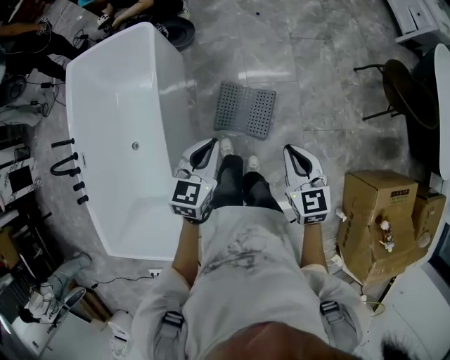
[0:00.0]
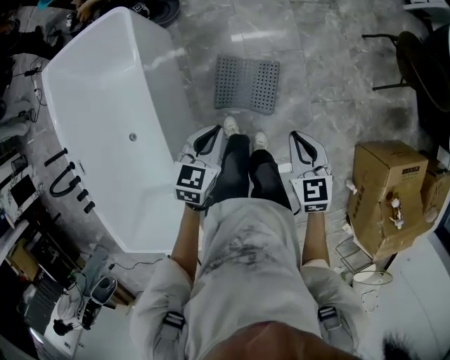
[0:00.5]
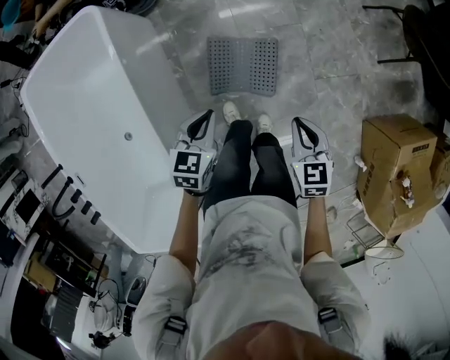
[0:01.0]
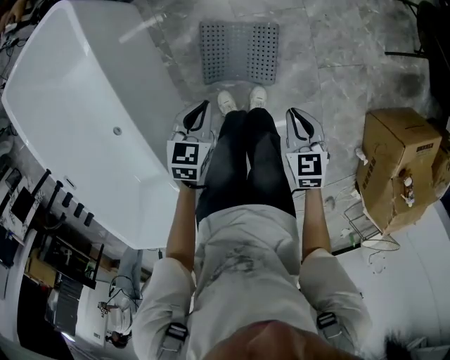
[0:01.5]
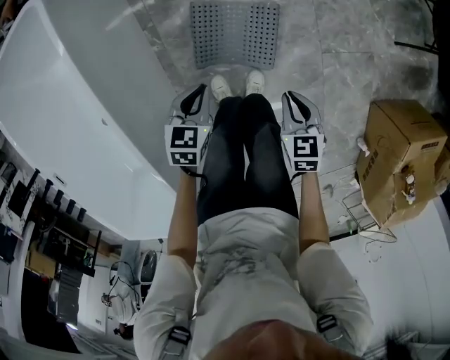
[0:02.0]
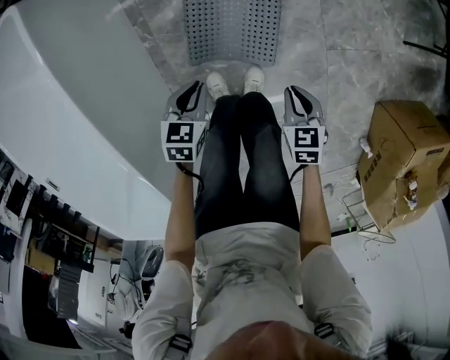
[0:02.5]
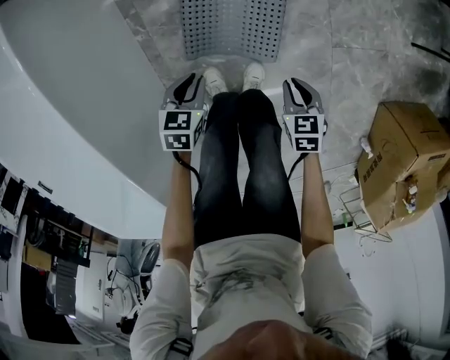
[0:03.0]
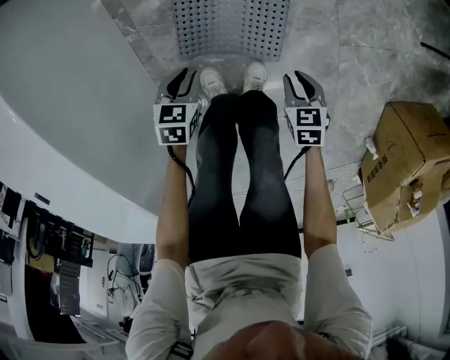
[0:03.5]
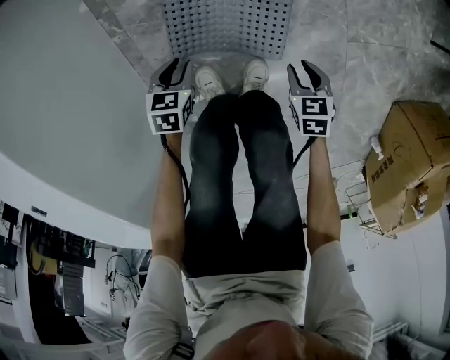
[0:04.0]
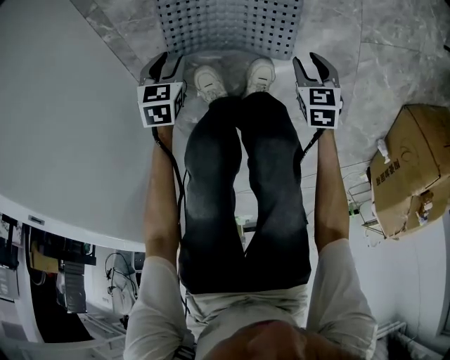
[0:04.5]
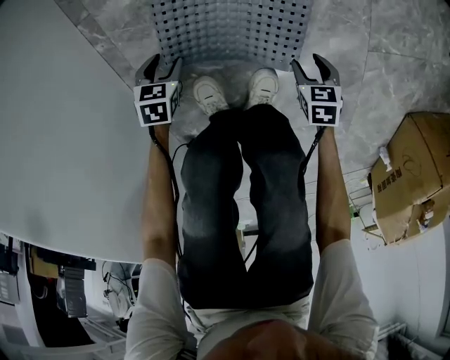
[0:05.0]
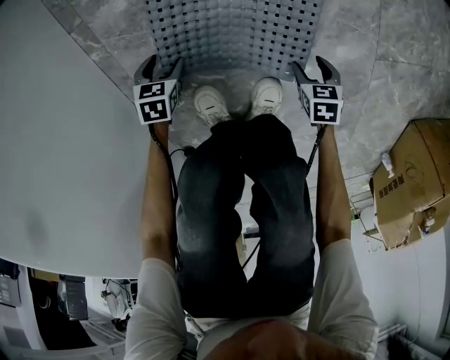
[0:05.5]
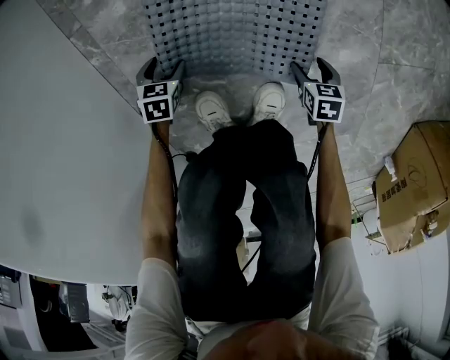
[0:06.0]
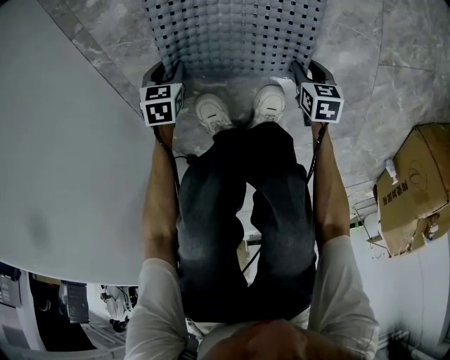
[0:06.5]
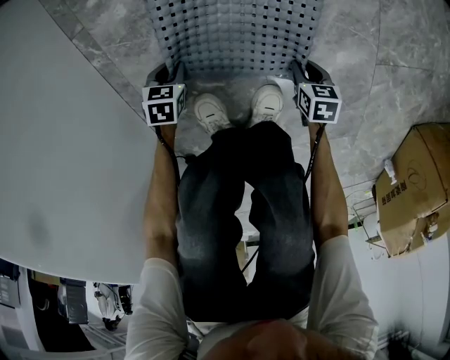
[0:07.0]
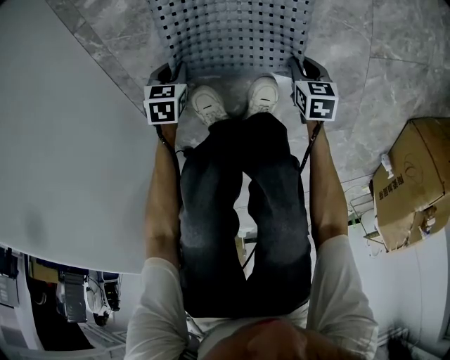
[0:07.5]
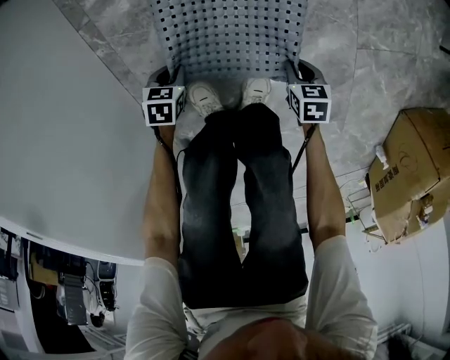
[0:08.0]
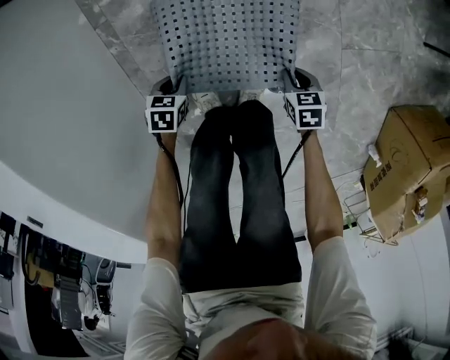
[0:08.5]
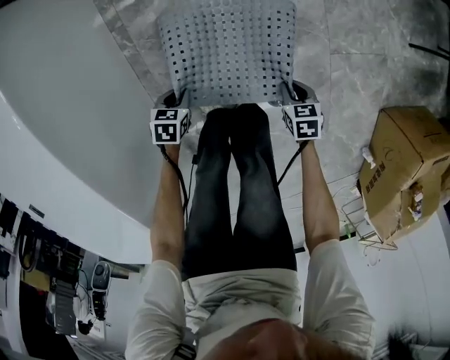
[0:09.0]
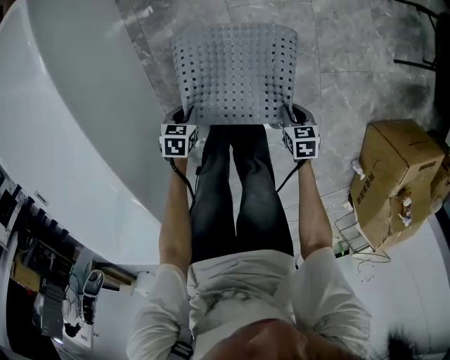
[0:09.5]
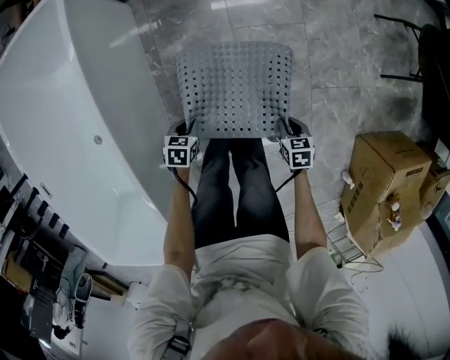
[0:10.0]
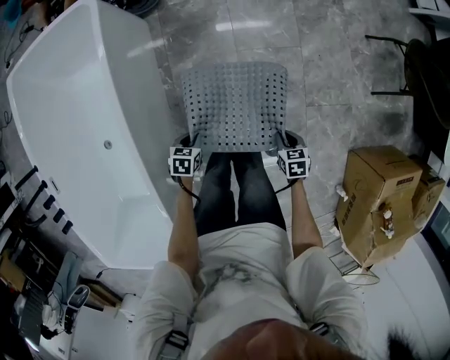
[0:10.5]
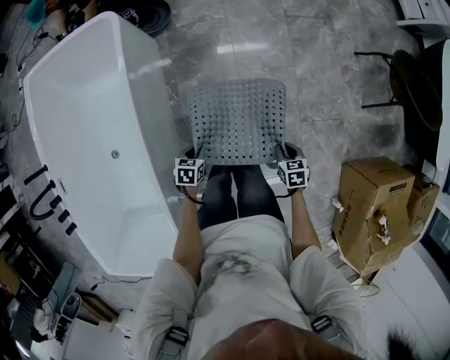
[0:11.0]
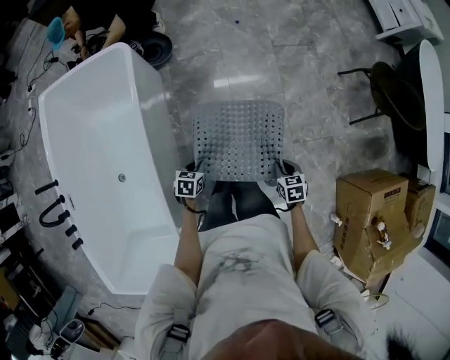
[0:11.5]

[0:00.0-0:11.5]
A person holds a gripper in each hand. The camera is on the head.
0:00.0 to 0:02.0: Both grippers travel together downward, roughly 40 cm. The left gripper changes its angle by roughly 30 degrees; the right gripper rotates some 30 degrees.
0:02.0 to 0:04.0: Both grippers move downward, roughly 35 cm.
0:04.0 to 0:06.0: The grippers both shift downward by roughly 25 cm. The right gripper opens up; the left gripper opens up.
0:06.0 to 0:07.5: The left gripper ends up approximately 5 cm from where it was, and closes its fingers. Meanwhile the right gripper closes up.
0:07.5 to 0:09.5: Both grippers move upward, roughly 30 cm.
0:09.5 to 0:11.5: Both grippers move upward, some 30 cm.

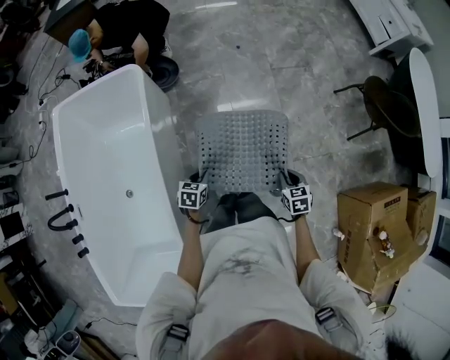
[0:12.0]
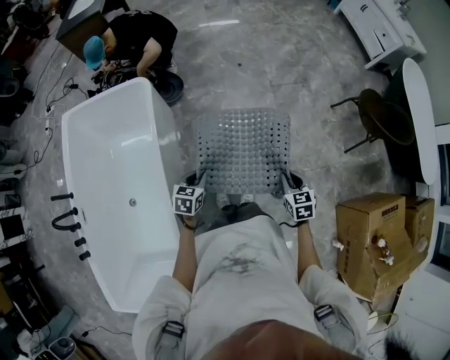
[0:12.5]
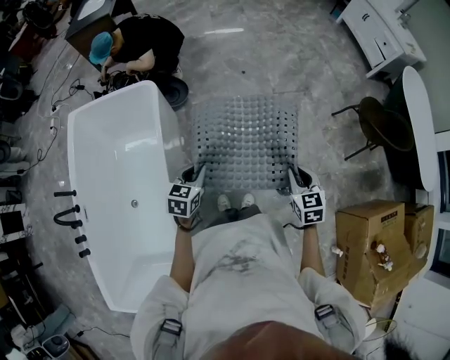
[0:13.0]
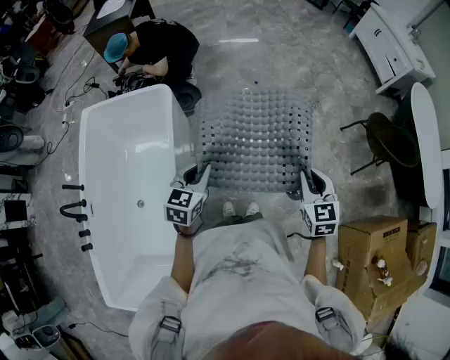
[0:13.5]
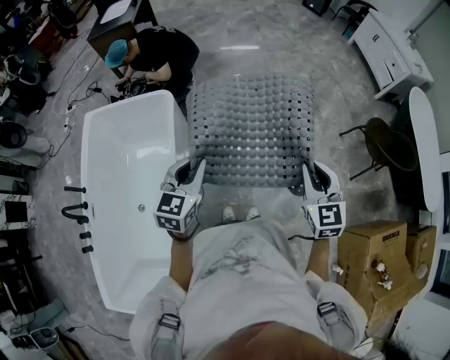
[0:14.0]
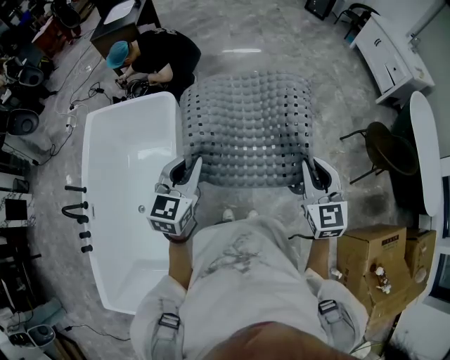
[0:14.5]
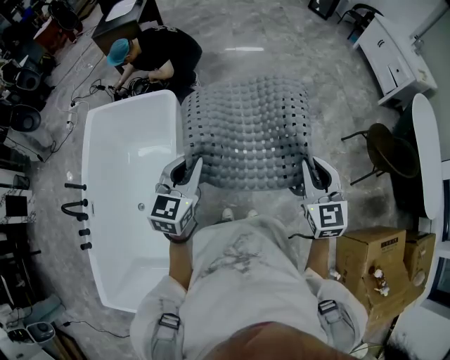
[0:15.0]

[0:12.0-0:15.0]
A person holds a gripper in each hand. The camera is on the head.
0:12.0 to 0:13.5: The grippers both shift upward by approximately 30 cm. The left gripper changes its angle by some 30 degrees. The right gripper changes its angle by approximately 30 degrees.
0:13.5 to 0:15.0: The grippers both shift upward by some 10 cm.

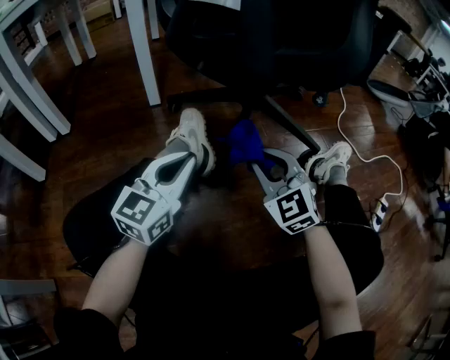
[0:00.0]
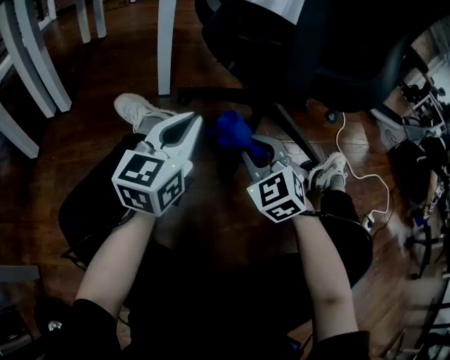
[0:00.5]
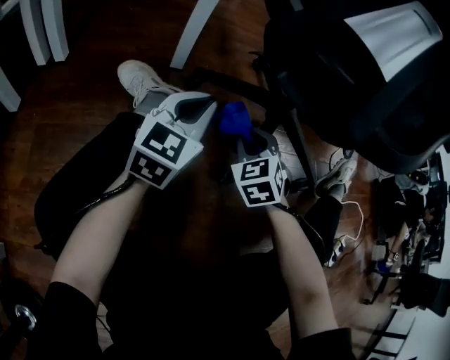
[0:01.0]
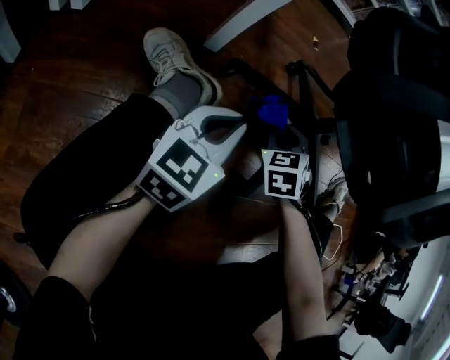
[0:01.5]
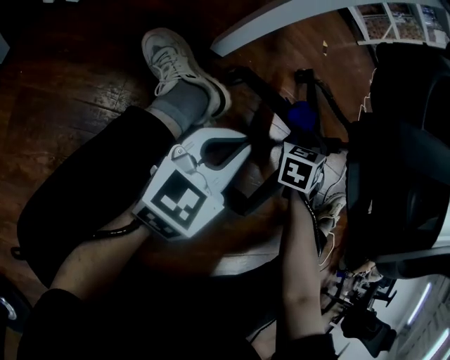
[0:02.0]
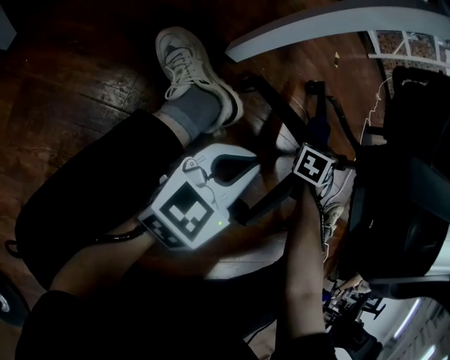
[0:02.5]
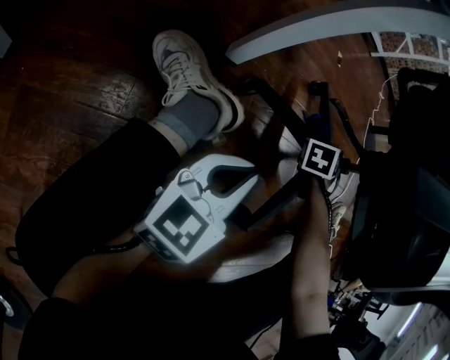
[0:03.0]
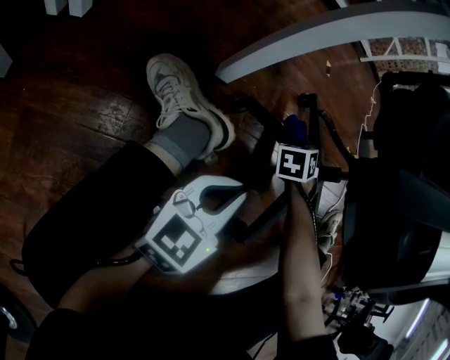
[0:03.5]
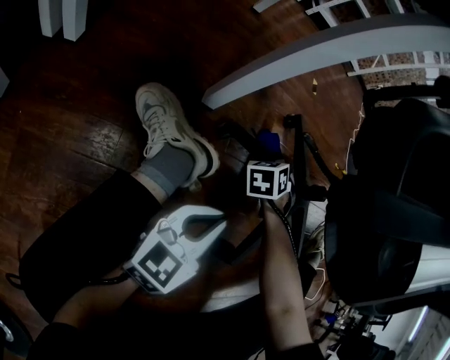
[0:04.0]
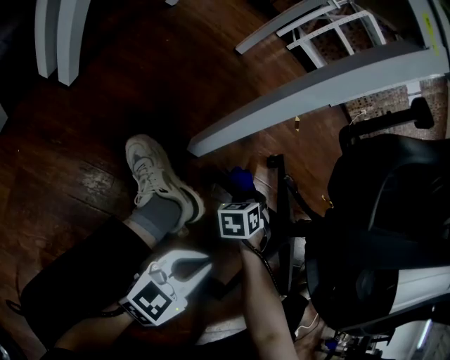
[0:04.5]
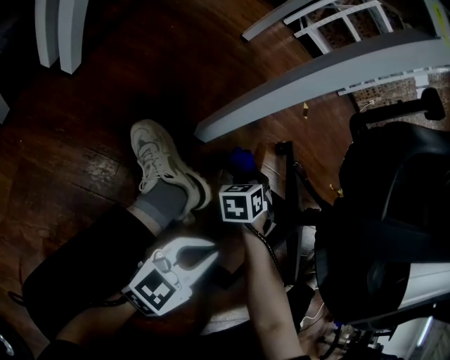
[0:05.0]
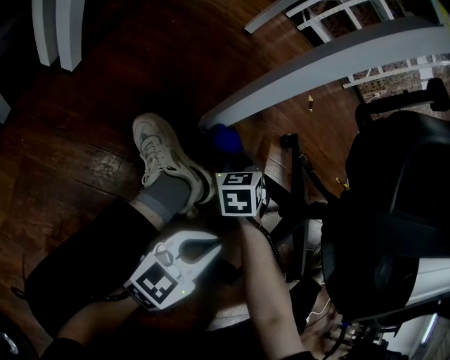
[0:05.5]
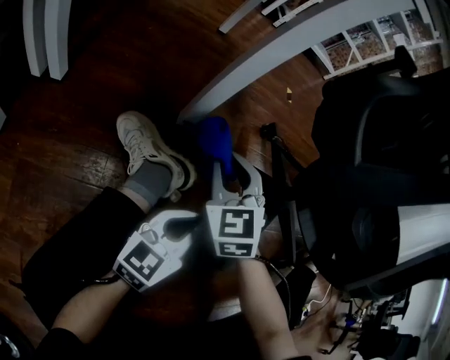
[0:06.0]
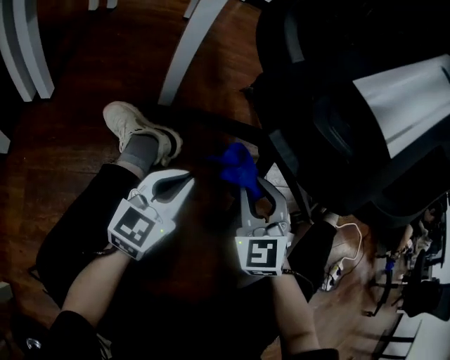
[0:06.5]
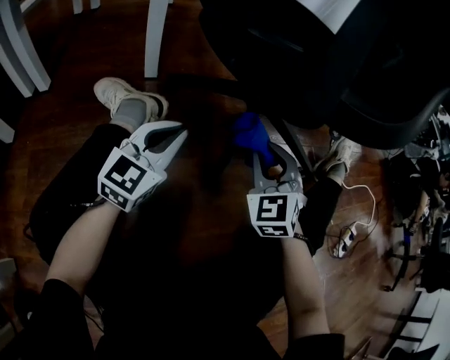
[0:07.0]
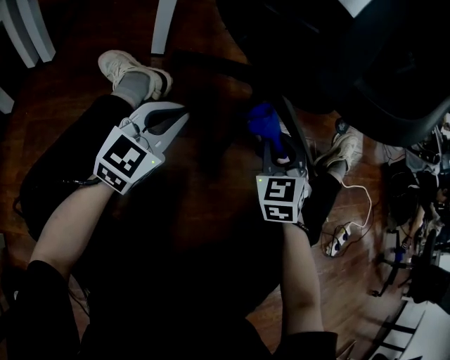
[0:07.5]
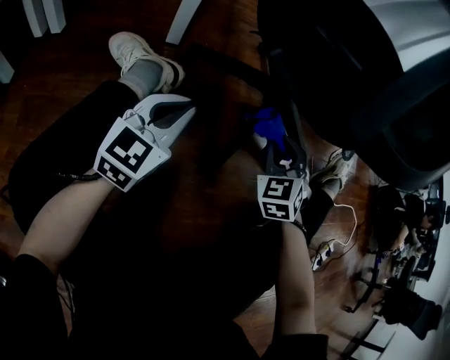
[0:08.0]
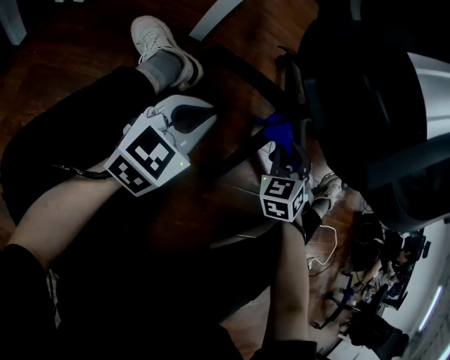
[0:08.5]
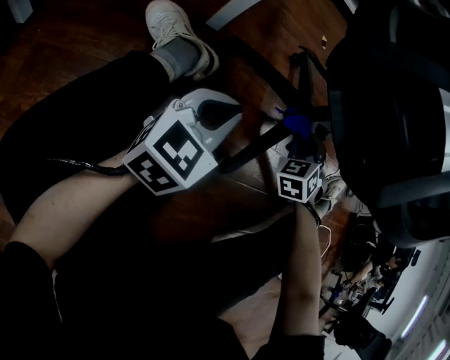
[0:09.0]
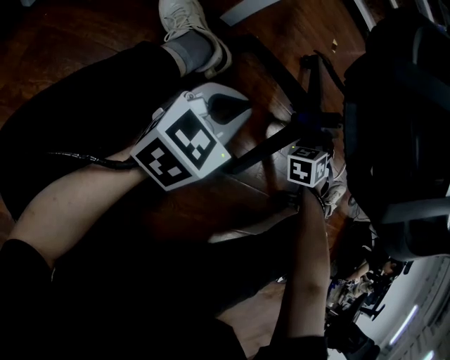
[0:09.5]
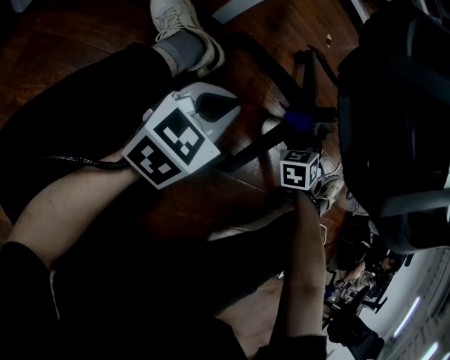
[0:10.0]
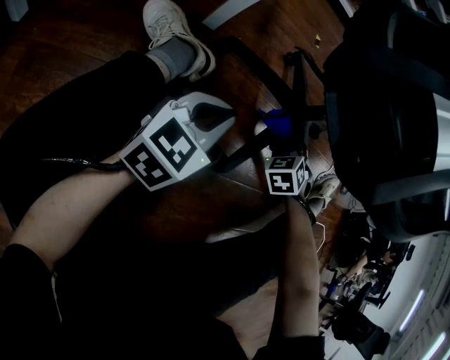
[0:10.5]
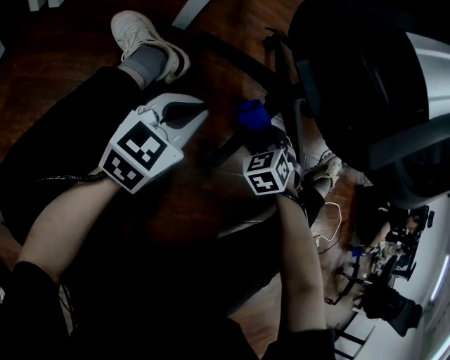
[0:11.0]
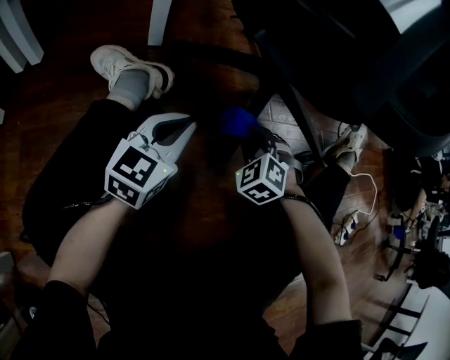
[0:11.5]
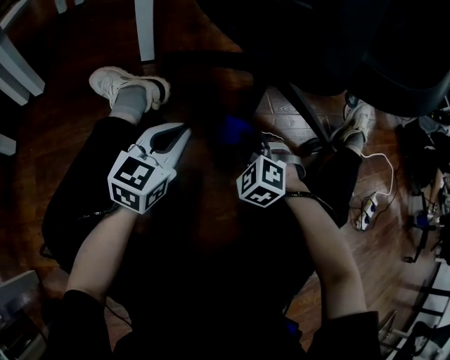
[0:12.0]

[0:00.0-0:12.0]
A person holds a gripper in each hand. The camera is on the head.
0:00.0 to 0:02.0: The right gripper heads forward and to the left, covering about 30 cm, and changes its angle by some 40 degrees. The left gripper shifts approximately 20 cm to the left, forward and downward.
0:02.0 to 0:04.0: The right gripper shifts about 10 cm to the left.
0:04.0 to 0:06.0: The right gripper is displaced backward, upward and to the left by some 20 cm, and swivels approximately 40 degrees.
0:06.0 to 0:08.0: The left gripper changes place by some 5 cm, and turns by roughly 20 degrees, while the right gripper shifts about 30 cm to the right.
0:08.0 to 0:10.0: The right gripper heads forward and downward, covering about 10 cm, and changes its angle by some 20 degrees.
0:10.0 to 0:12.0: The right gripper moves backward, approximately 15 cm, and turns by roughly 20 degrees.
